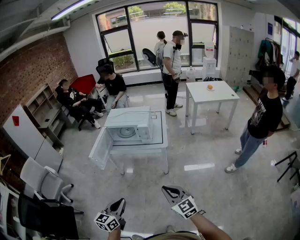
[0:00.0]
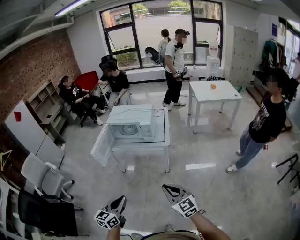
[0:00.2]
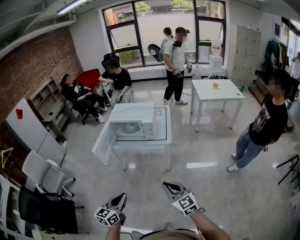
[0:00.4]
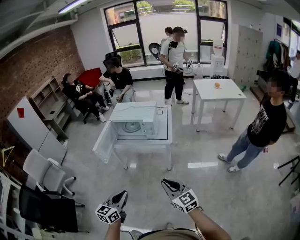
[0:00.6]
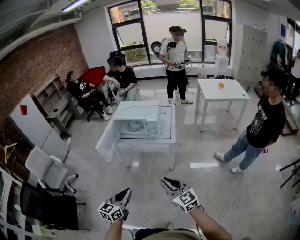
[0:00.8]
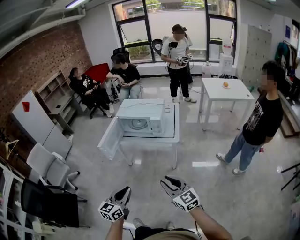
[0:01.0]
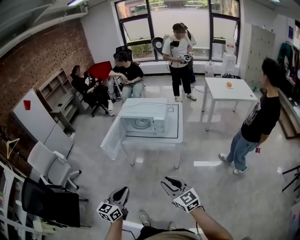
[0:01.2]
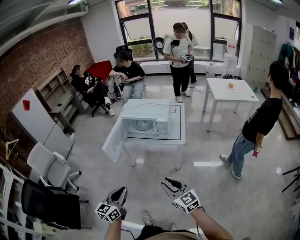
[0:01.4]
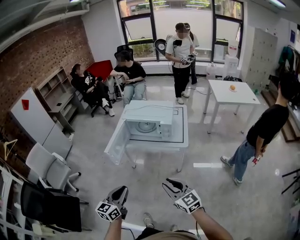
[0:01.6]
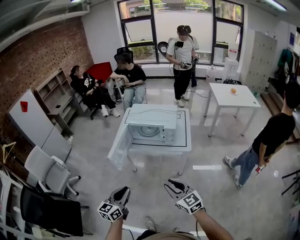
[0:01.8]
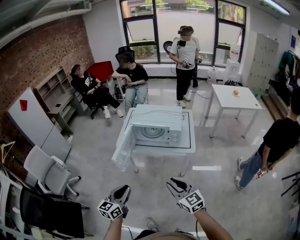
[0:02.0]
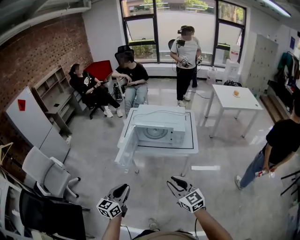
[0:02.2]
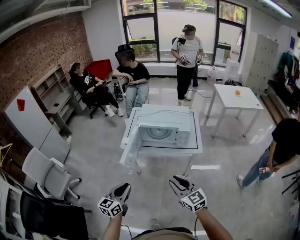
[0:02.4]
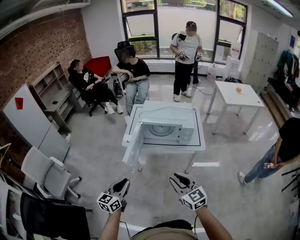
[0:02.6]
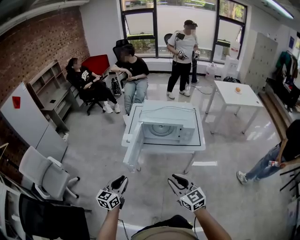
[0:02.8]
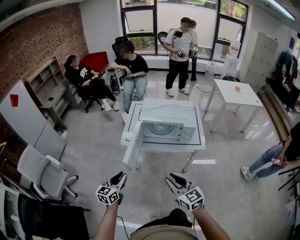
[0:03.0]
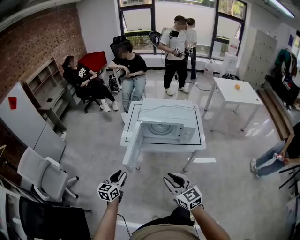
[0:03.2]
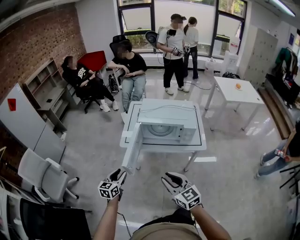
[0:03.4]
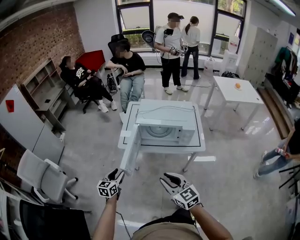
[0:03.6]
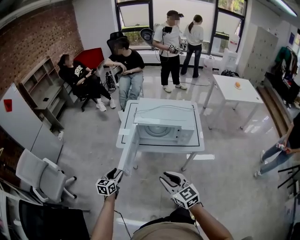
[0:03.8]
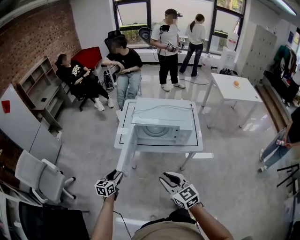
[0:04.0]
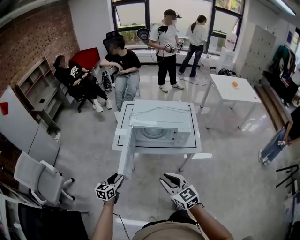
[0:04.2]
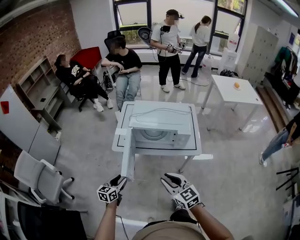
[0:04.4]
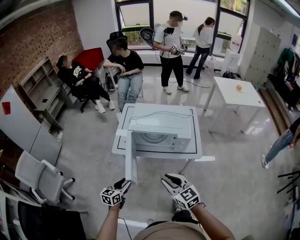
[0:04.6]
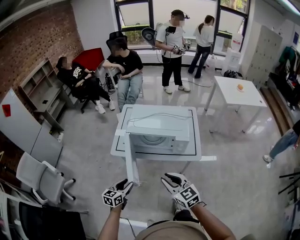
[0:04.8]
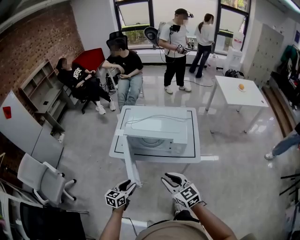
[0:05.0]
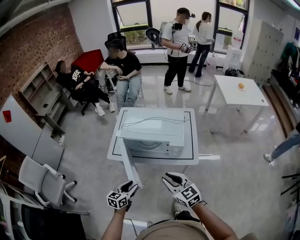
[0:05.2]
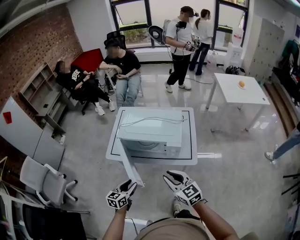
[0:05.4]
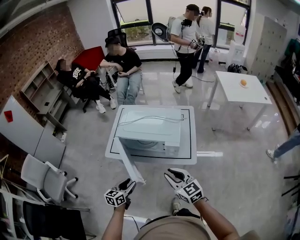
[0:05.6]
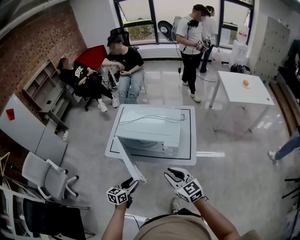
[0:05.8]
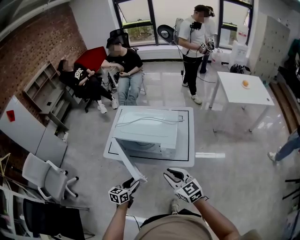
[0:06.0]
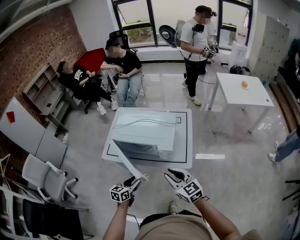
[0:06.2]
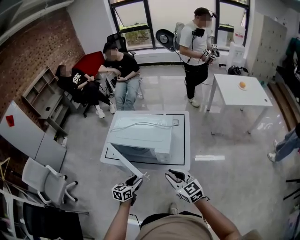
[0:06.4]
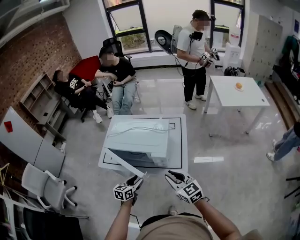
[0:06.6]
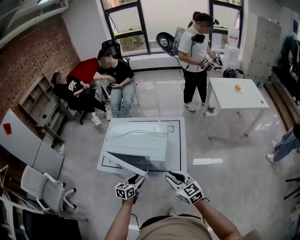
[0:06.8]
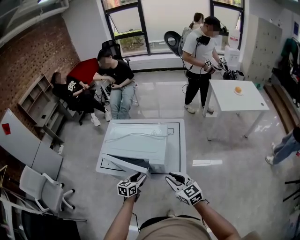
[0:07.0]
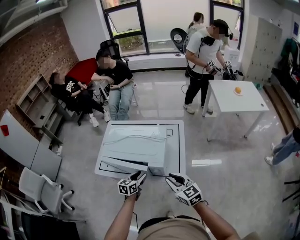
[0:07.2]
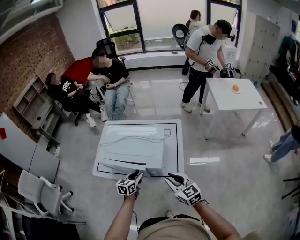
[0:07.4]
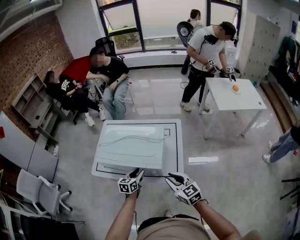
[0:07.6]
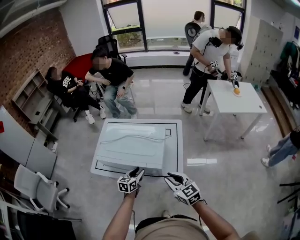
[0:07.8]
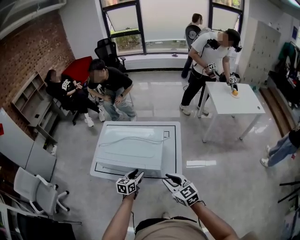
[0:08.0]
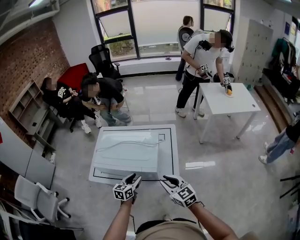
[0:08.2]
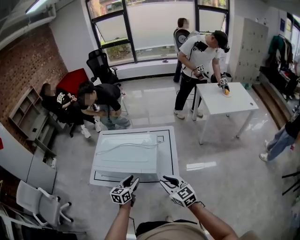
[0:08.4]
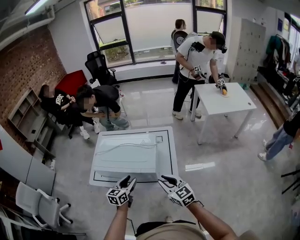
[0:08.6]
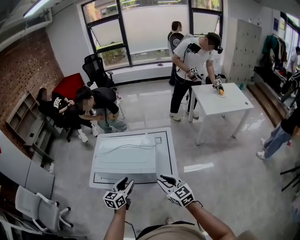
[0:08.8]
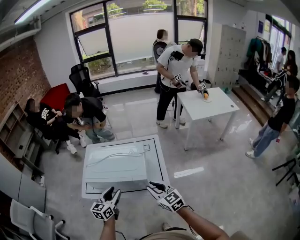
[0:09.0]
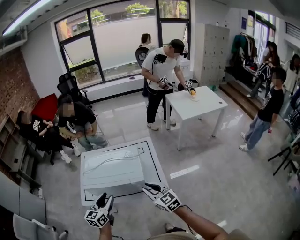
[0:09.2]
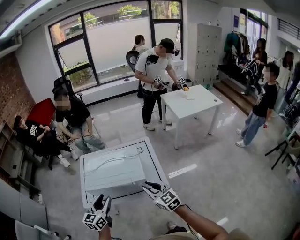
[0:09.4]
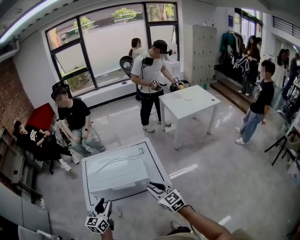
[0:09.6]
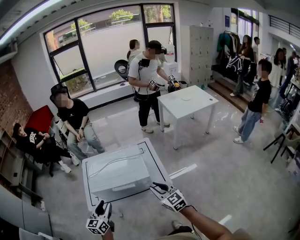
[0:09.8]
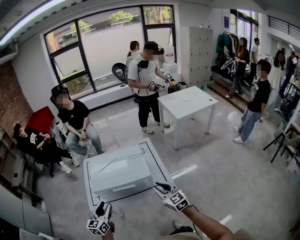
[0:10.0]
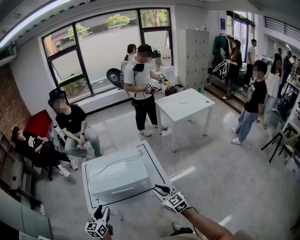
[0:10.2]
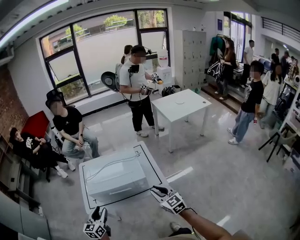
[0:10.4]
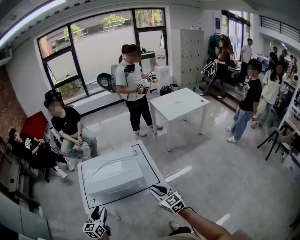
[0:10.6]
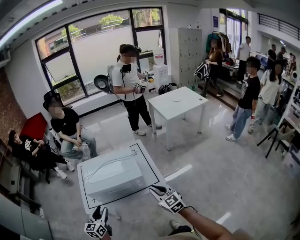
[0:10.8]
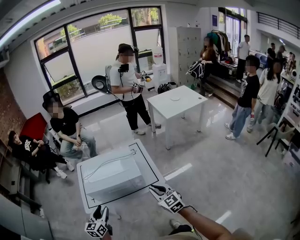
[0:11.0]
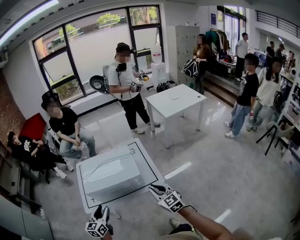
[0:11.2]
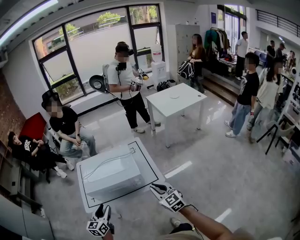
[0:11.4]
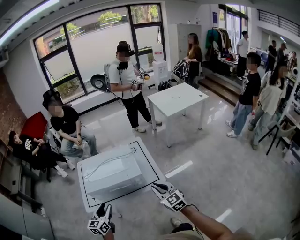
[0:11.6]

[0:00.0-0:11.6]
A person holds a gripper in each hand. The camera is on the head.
0:00.0 to 0:01.4: The grippers both shift forward and to the left by about 10 cm.
0:01.4 to 0:02.8: Both grippers move to the left and forward, about 30 cm.
0:02.8 to 0:04.4: The right gripper moves forward, roughly 10 cm. The left gripper shifts approximately 15 cm forward and downward, and opens.
0:04.4 to 0:05.8: The left gripper goes roughly 20 cm to the right; the right gripper shifts approximately 20 cm to the right and forward.
0:05.8 to 0:07.2: The right gripper goes about 15 cm to the right and forward. Meanwhile the left gripper goes some 25 cm forward and to the right.
0:07.2 to 0:08.8: The left gripper goes roughly 10 cm upward.
0:08.8 to 0:10.2: The left gripper shifts approximately 20 cm to the left and backward, while the right gripper shifts some 5 cm backward.
0:10.2 to 0:11.6: The left gripper moves to the right, about 5 cm.

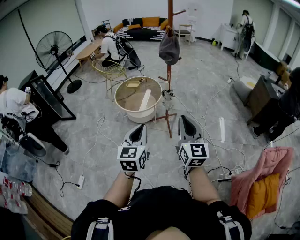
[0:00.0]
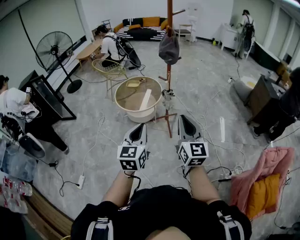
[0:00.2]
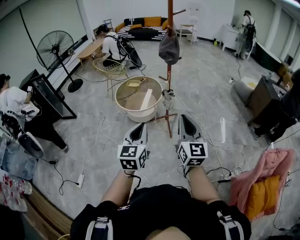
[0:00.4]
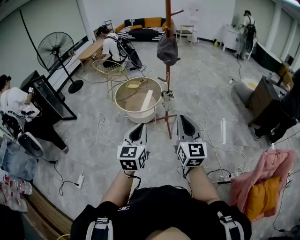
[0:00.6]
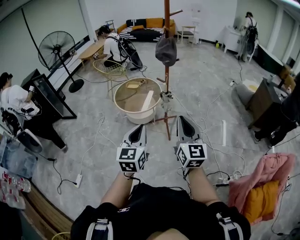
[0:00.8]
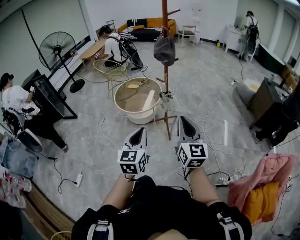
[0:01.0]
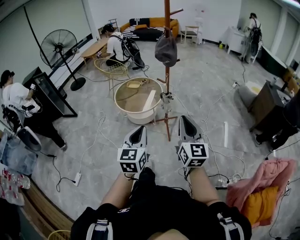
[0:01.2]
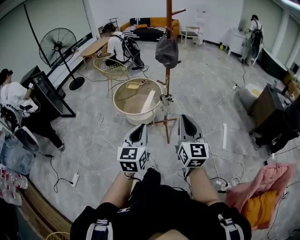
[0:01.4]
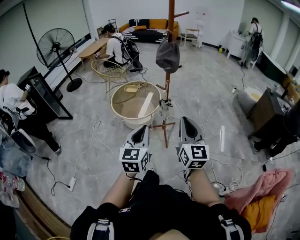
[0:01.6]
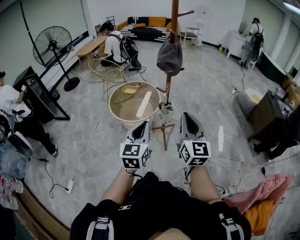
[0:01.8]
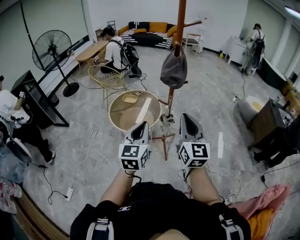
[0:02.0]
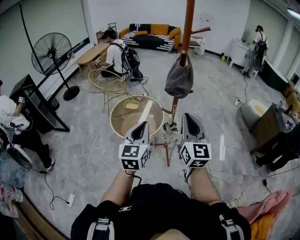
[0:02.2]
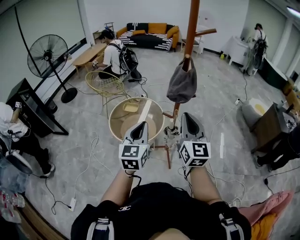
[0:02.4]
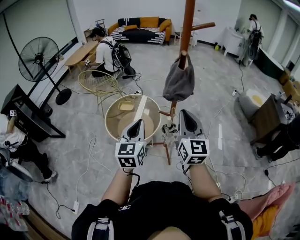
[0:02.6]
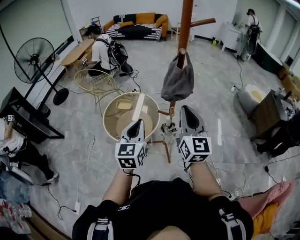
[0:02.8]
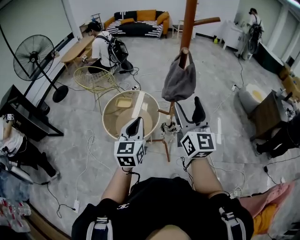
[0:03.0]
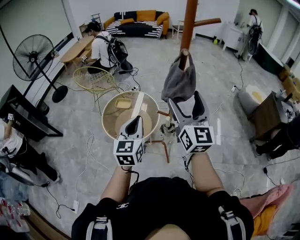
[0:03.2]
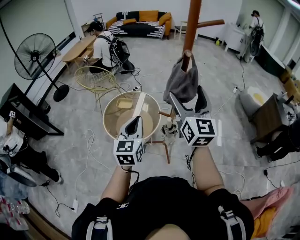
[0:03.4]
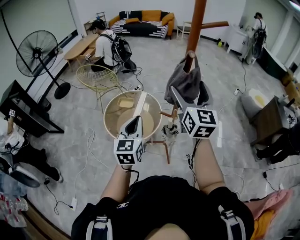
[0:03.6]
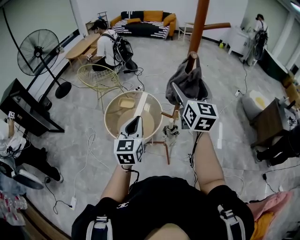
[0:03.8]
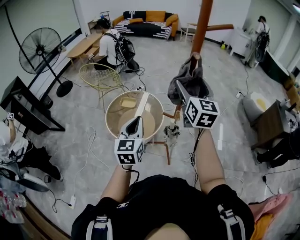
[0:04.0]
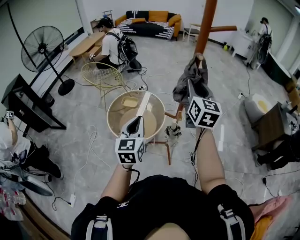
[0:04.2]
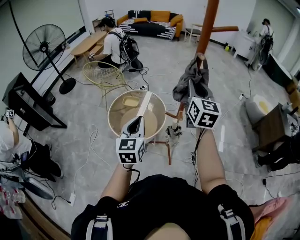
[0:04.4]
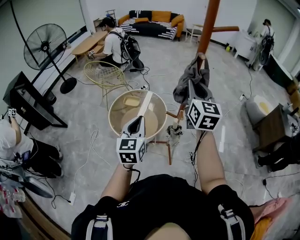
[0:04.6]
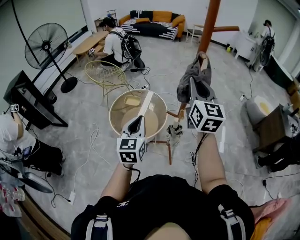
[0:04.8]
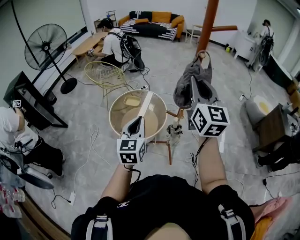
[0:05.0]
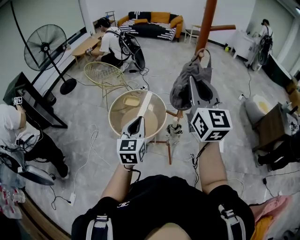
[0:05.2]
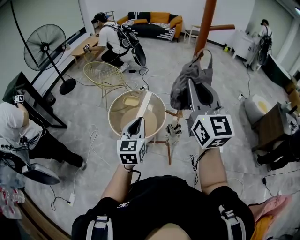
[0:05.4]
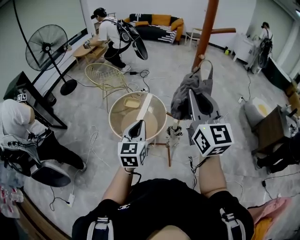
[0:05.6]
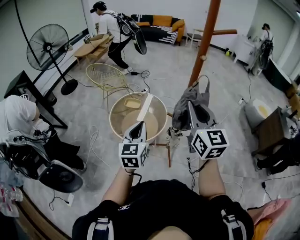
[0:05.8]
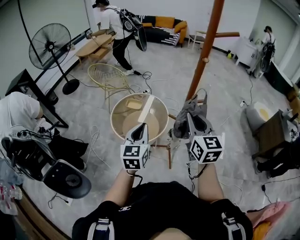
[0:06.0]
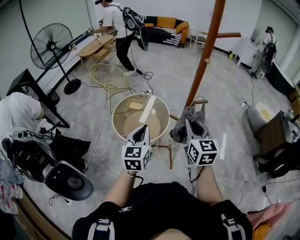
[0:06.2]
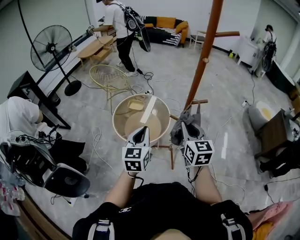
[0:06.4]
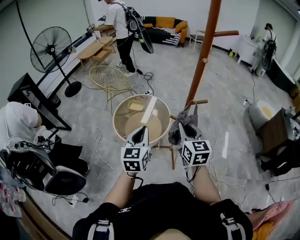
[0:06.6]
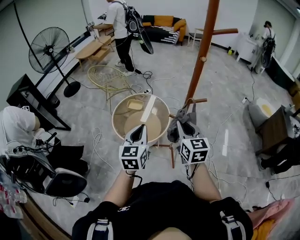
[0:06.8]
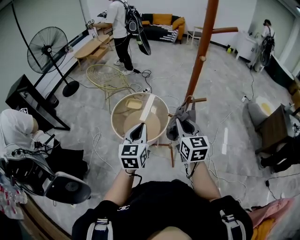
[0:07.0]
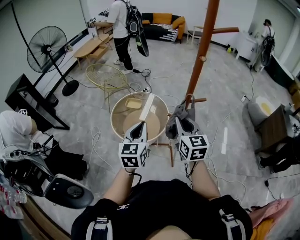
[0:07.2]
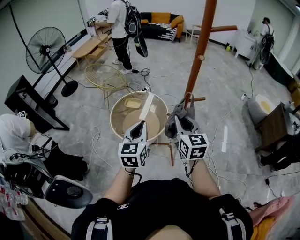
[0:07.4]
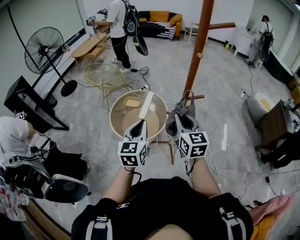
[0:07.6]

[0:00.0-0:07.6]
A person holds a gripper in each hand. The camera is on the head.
0:00.0 to 0:01.6: The grippers both shift forward and to the right by about 15 cm.
0:01.6 to 0:03.0: The pair of grippers is taken forward, some 40 cm. The right gripper opens its fingers.
0:03.0 to 0:04.6: The right gripper shifts approximately 10 cm forward, and closes its fingers.
0:04.6 to 0:06.0: The right gripper moves backward and downward, some 15 cm.
0:06.0 to 0:07.6: The right gripper goes about 5 cm downward.

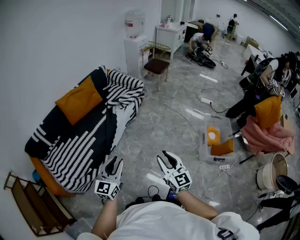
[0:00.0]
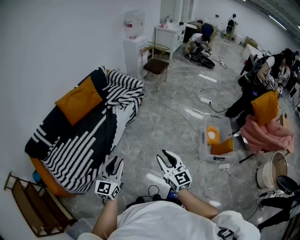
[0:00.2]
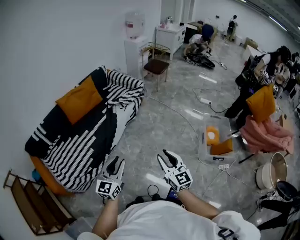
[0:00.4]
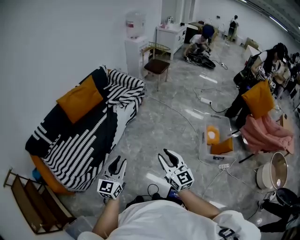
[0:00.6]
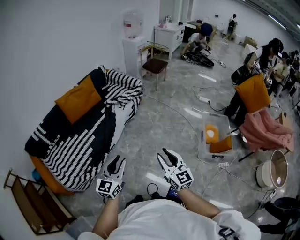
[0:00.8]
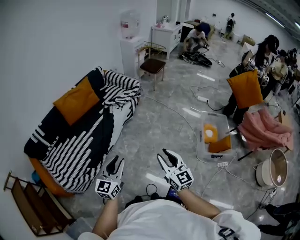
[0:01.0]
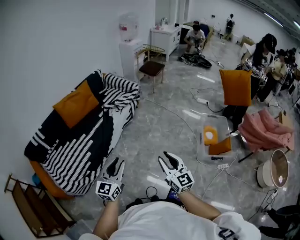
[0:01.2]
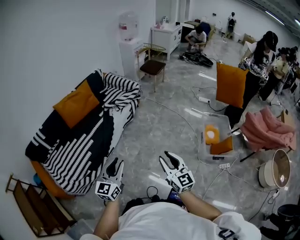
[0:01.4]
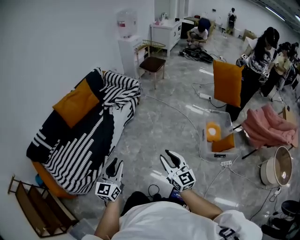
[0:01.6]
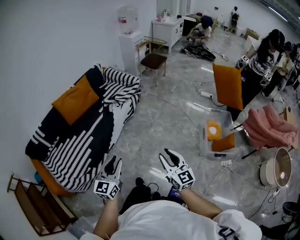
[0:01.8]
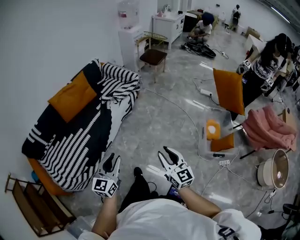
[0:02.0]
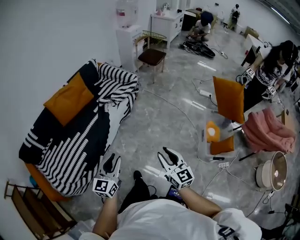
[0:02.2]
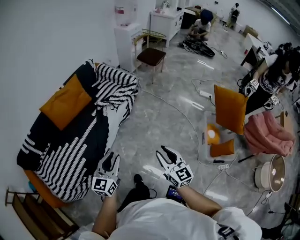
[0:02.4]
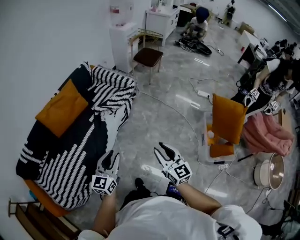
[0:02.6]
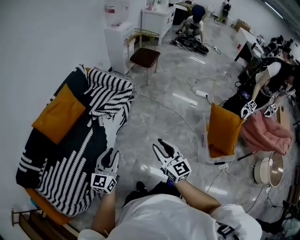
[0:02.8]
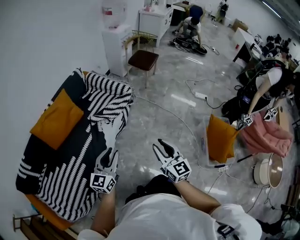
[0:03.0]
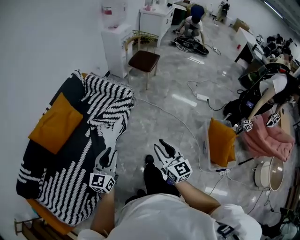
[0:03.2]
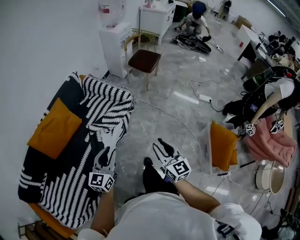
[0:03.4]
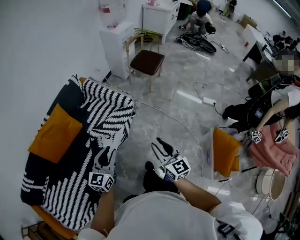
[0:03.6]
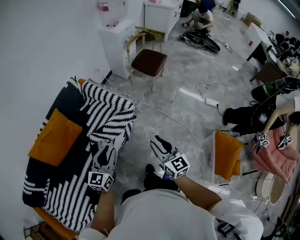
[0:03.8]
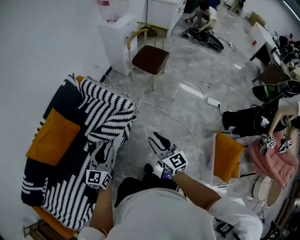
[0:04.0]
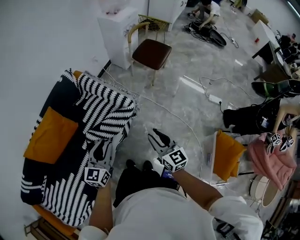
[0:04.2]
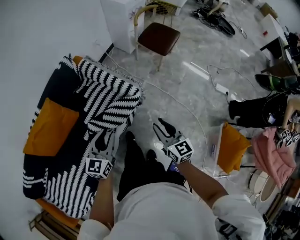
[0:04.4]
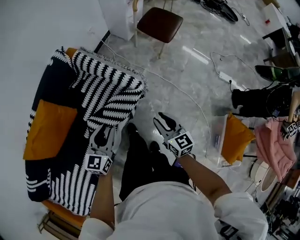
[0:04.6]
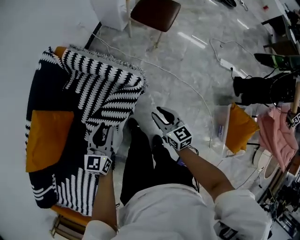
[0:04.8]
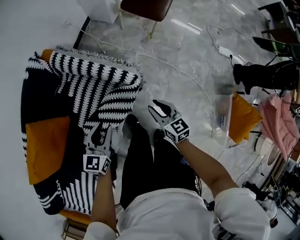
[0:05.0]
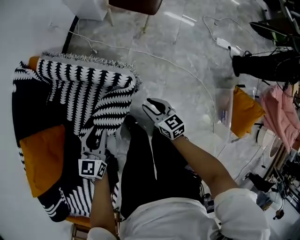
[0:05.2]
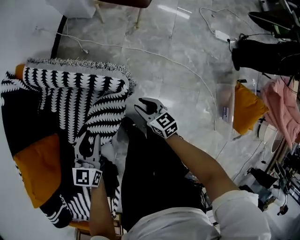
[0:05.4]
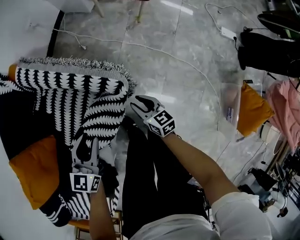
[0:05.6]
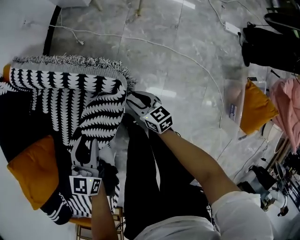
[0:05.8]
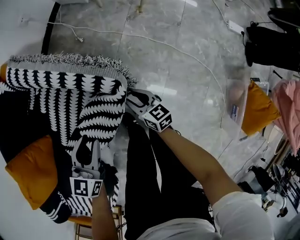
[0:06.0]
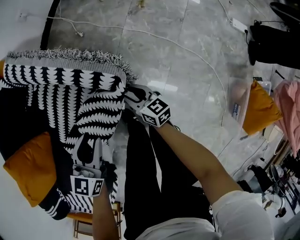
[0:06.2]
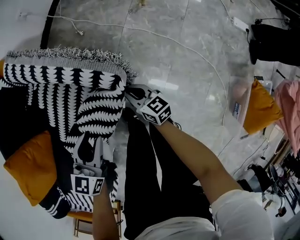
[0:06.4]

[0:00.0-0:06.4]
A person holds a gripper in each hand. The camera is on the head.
0:00.0 to 0:01.6: Both grippers travel together to the right, approximately 5 cm.
0:01.6 to 0:03.2: The pair of grippers is taken forward, about 40 cm.
0:03.2 to 0:04.8: The two grippers travel together, forward, roughly 50 cm. The right gripper heads downward, covering roughly 25 cm, and turns by some 30 degrees.
0:04.8 to 0:06.4: The right gripper moves downward, about 30 cm, and closes, while the left gripper heads downward, covering approximately 20 cm.
